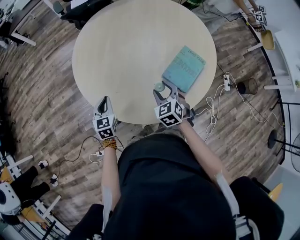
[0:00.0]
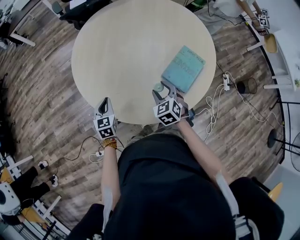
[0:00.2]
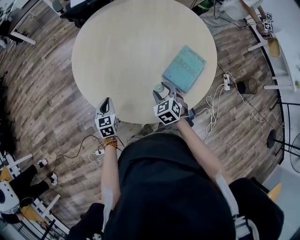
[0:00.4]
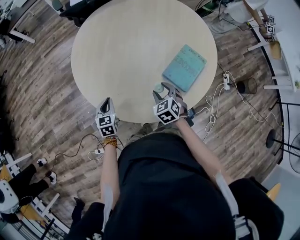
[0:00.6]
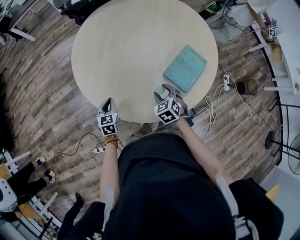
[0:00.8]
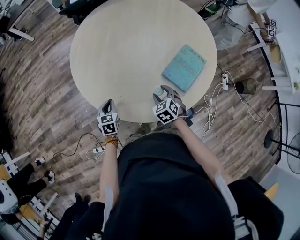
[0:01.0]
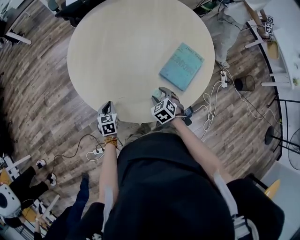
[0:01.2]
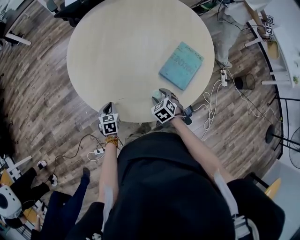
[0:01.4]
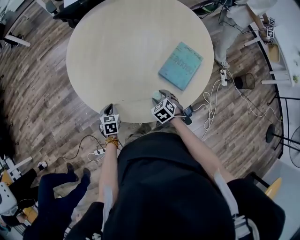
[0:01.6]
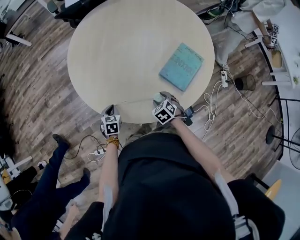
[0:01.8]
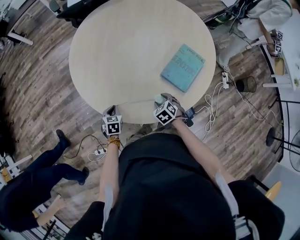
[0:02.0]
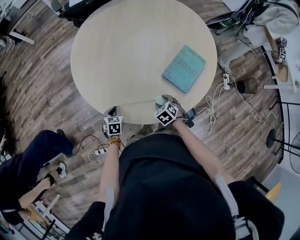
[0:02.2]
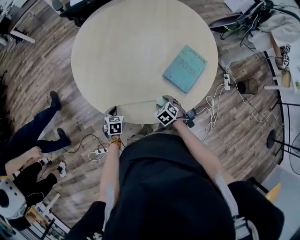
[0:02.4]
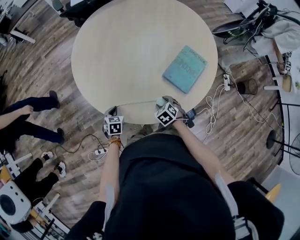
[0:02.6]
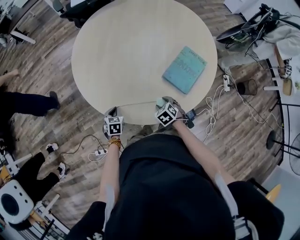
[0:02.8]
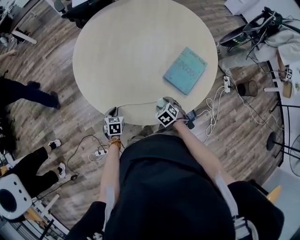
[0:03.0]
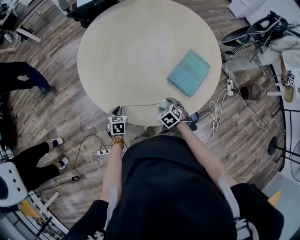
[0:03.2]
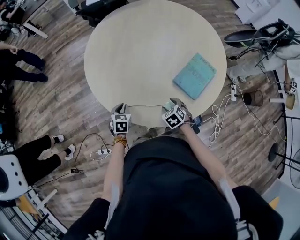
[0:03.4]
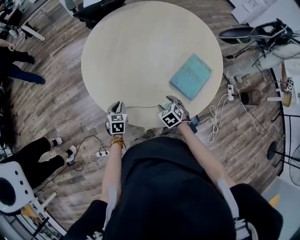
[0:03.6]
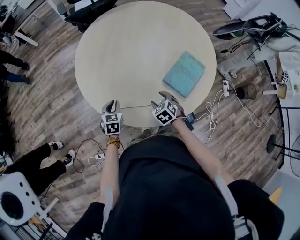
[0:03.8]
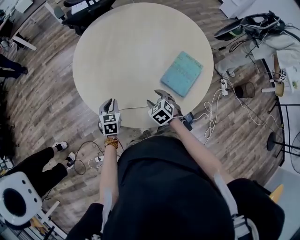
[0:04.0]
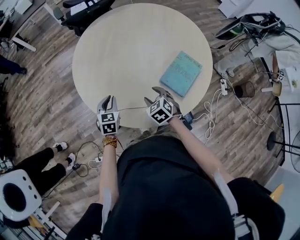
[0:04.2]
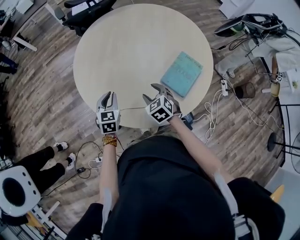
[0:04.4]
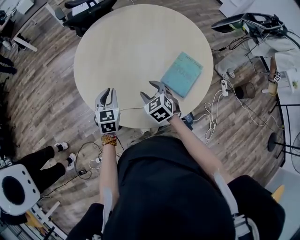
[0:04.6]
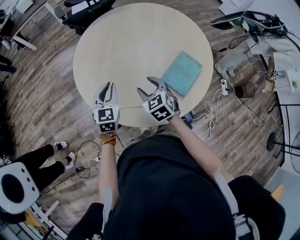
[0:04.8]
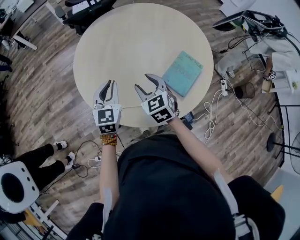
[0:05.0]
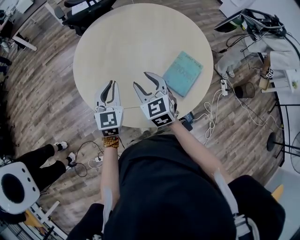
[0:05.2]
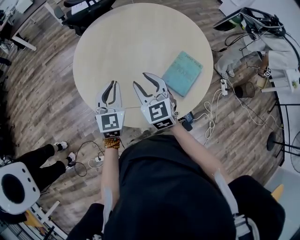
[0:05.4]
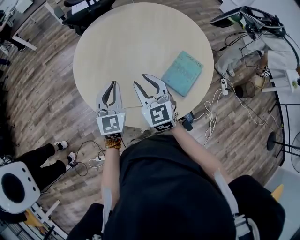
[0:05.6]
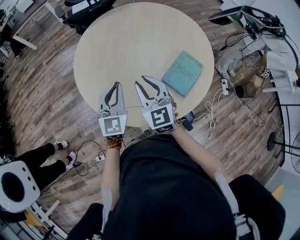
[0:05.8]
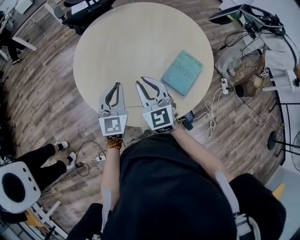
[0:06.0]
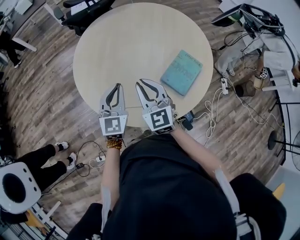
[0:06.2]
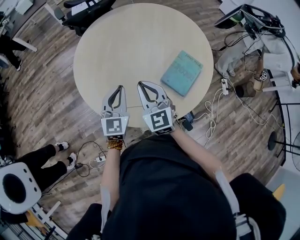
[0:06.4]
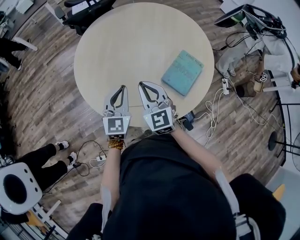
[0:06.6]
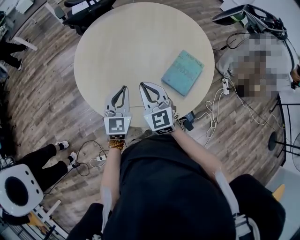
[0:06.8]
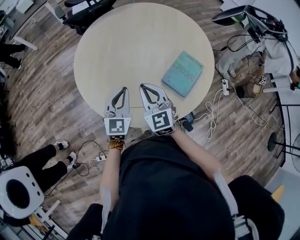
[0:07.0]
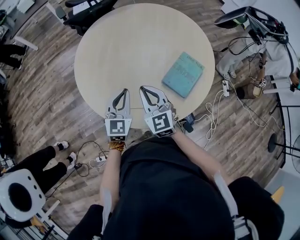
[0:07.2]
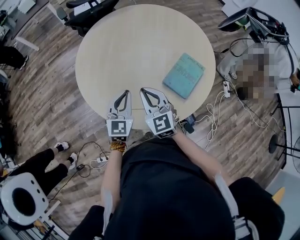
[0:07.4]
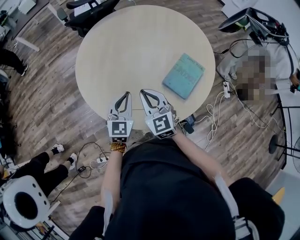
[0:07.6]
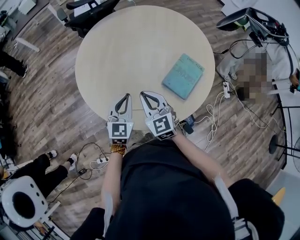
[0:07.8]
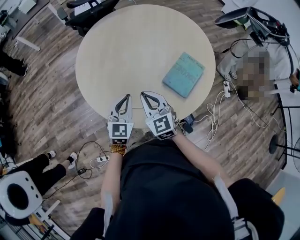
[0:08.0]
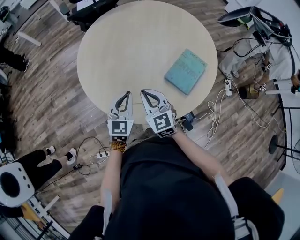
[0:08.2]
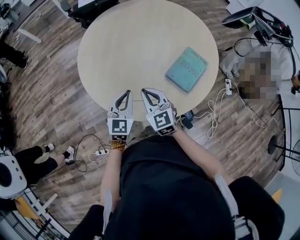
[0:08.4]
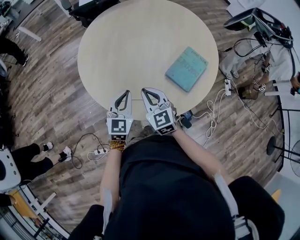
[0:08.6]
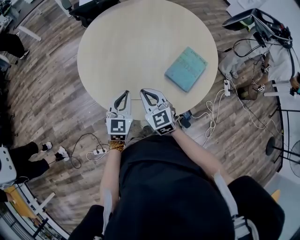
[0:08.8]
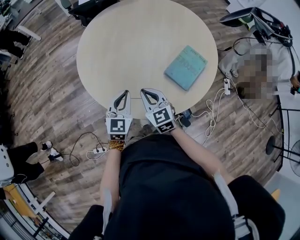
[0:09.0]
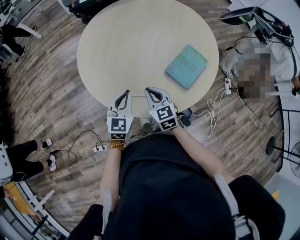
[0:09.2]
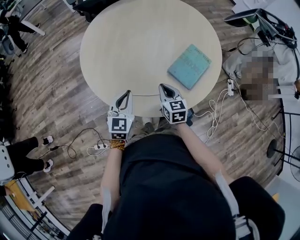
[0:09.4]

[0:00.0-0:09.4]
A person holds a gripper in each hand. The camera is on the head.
0:00.0 to 0:01.6: Both grippers move downward, roughly 15 cm. The left gripper swivels roughly 20 degrees.
0:01.6 to 0:03.2: The grippers stay close to where they were, moving slightly.
0:03.2 to 0:04.8: The right gripper is displaced upward and forward by approximately 20 cm, and turns by some 30 degrees. The left gripper goes approximately 25 cm upward, and points its fingers some 30 degrees further upward.
0:04.8 to 0:06.2: The right gripper shifts some 10 cm upward, changes its angle by approximately 30 degrees, and closes its fingers; the left gripper is displaced upward by roughly 5 cm.
0:06.2 to 0:07.8: Both grippers travel together downward, roughly 5 cm.
0:07.8 to 0:09.4: The right gripper heads downward and to the right, covering roughly 10 cm, and swivels approximately 20 degrees; the left gripper moves backward, about 5 cm.

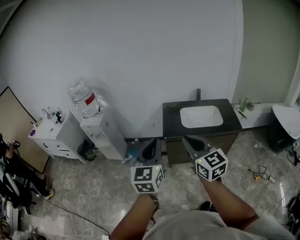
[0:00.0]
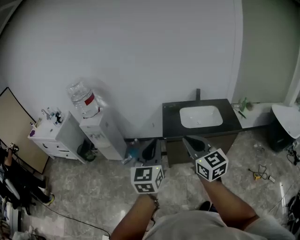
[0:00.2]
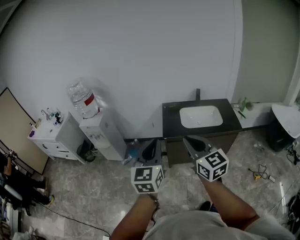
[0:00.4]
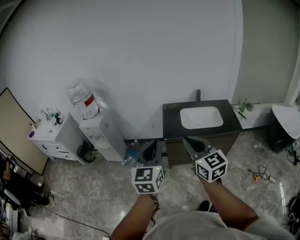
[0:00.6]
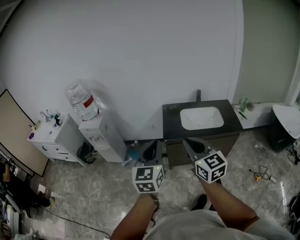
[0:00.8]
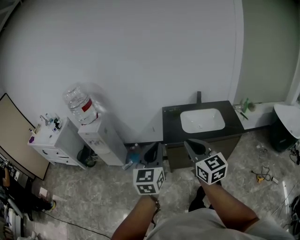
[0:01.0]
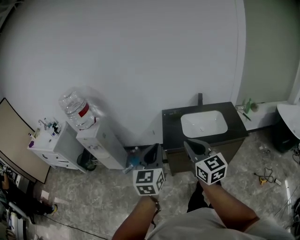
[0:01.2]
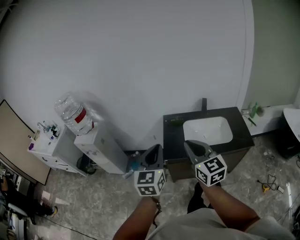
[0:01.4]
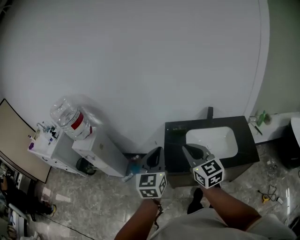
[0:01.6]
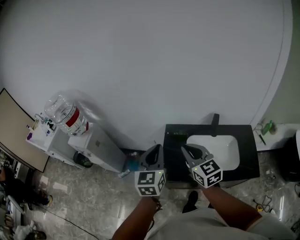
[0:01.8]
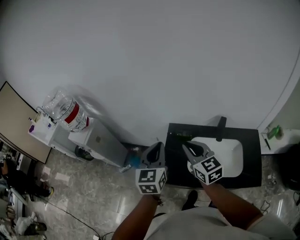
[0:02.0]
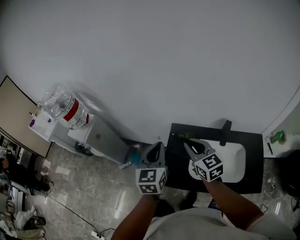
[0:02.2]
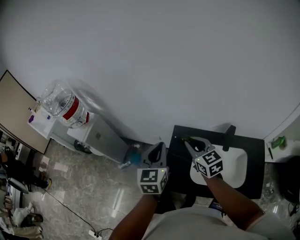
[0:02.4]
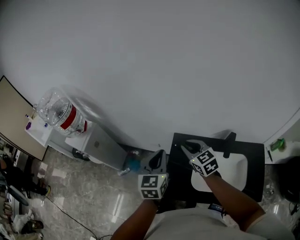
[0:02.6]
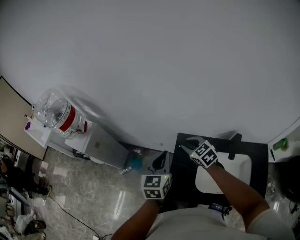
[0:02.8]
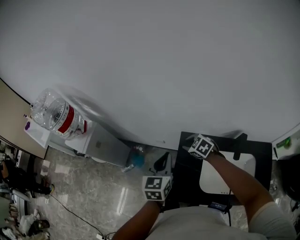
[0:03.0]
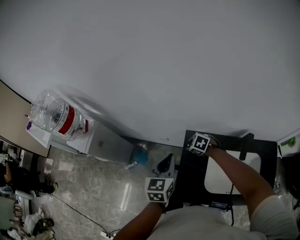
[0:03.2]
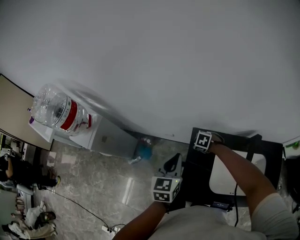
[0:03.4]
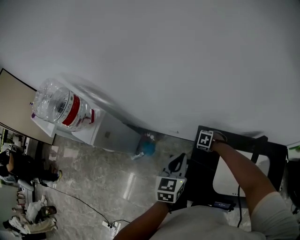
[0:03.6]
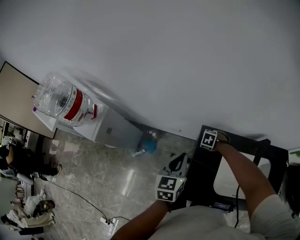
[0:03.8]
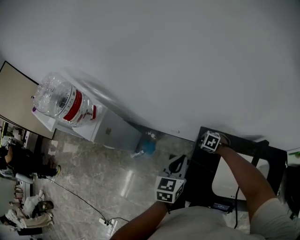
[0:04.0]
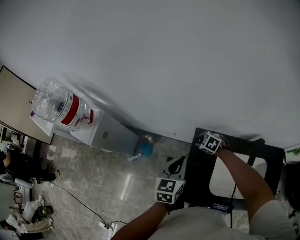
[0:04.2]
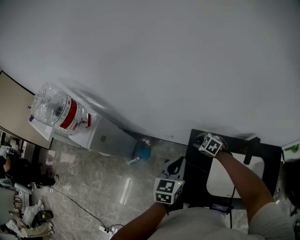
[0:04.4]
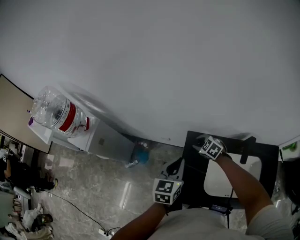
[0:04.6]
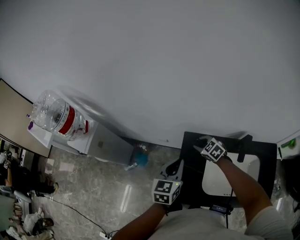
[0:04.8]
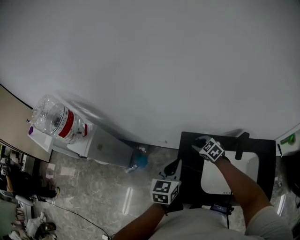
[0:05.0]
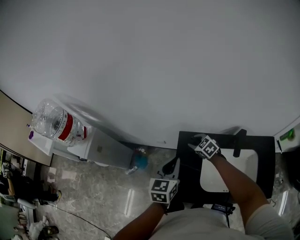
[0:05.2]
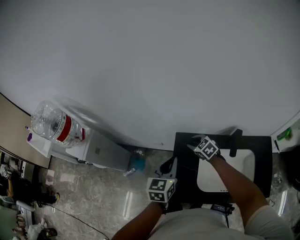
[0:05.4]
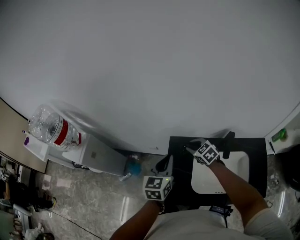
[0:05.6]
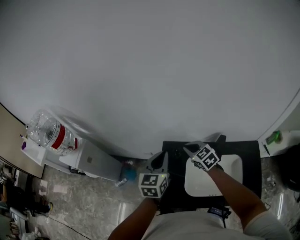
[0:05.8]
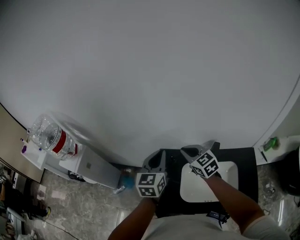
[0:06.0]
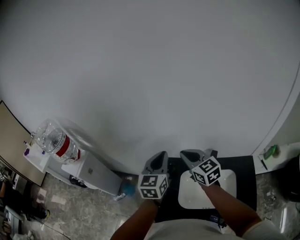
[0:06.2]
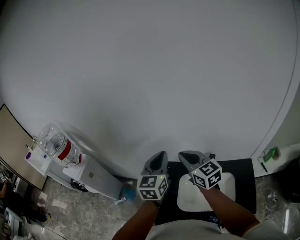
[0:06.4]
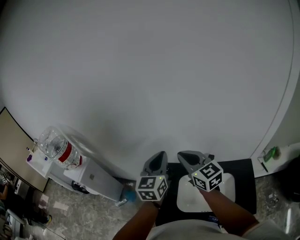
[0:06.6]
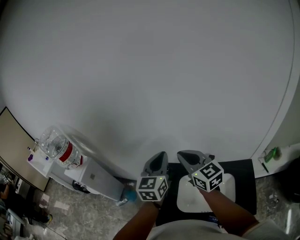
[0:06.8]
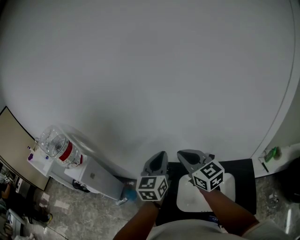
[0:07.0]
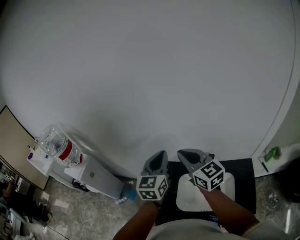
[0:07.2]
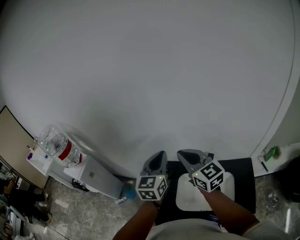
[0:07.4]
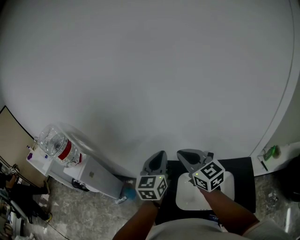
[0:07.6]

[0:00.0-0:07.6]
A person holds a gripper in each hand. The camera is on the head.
0:00.0 to 0:01.6: Both grippers travel together forward, roughly 35 cm.
0:01.6 to 0:03.0: The grippers both shift forward and downward by about 40 cm. The right gripper angles its fingers downward, by some 50 degrees.
0:03.0 to 0:04.6: The right gripper reaches about 20 cm downward, then returns. The left gripper changes place by about 5 cm.
0:04.6 to 0:06.0: The left gripper goes roughly 15 cm upward and to the right. Meanwhile the right gripper goes some 30 cm upward, to the right and backward, turns by some 30 degrees, and closes.
0:06.0 to 0:07.6: The right gripper is displaced upward and backward by roughly 15 cm, and rotates some 20 degrees; the left gripper goes roughly 10 cm upward and to the right.

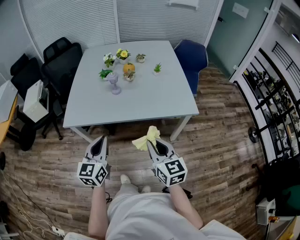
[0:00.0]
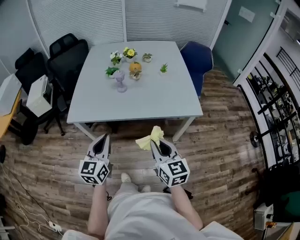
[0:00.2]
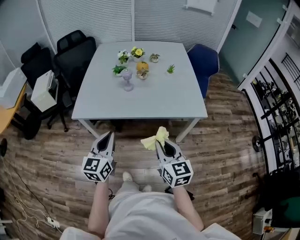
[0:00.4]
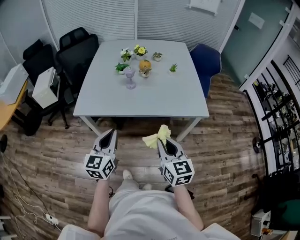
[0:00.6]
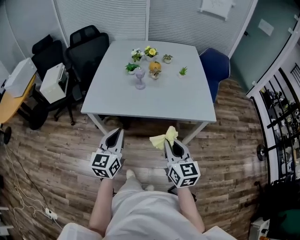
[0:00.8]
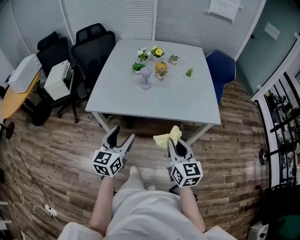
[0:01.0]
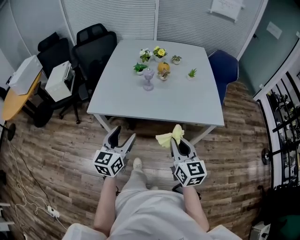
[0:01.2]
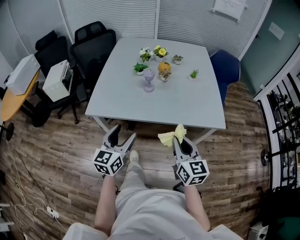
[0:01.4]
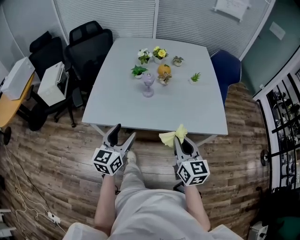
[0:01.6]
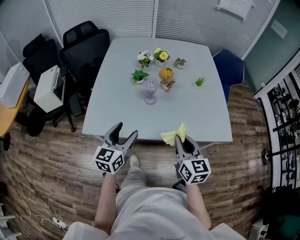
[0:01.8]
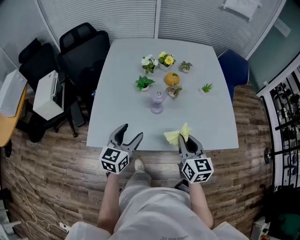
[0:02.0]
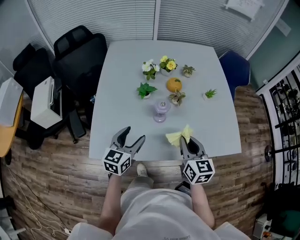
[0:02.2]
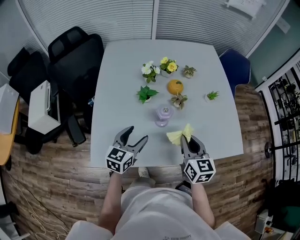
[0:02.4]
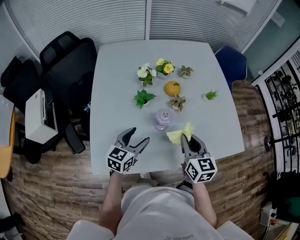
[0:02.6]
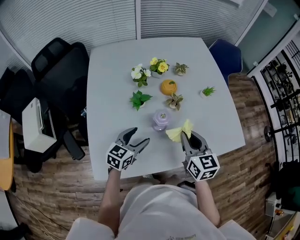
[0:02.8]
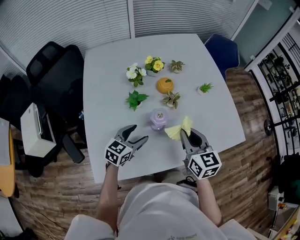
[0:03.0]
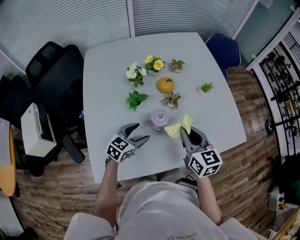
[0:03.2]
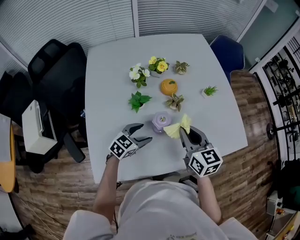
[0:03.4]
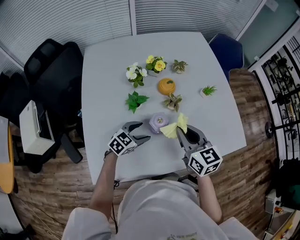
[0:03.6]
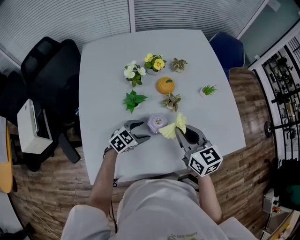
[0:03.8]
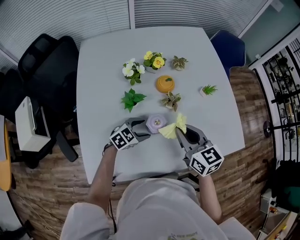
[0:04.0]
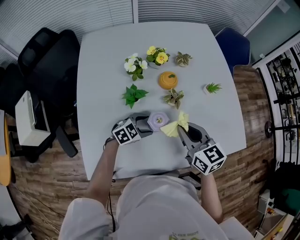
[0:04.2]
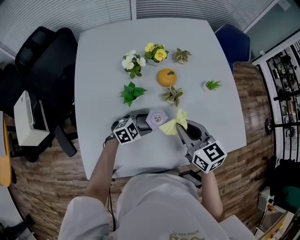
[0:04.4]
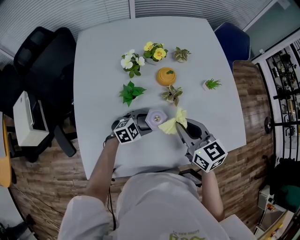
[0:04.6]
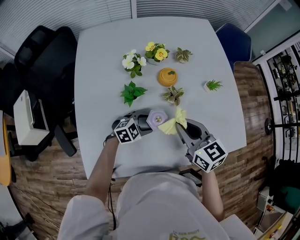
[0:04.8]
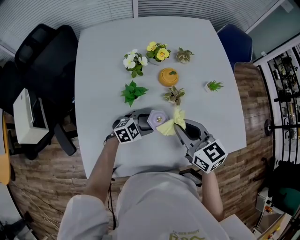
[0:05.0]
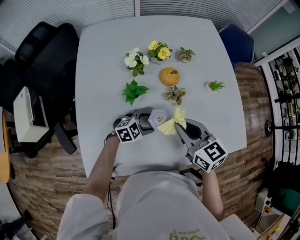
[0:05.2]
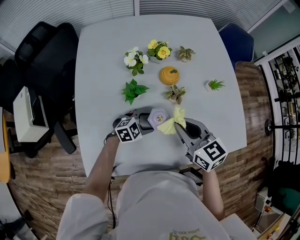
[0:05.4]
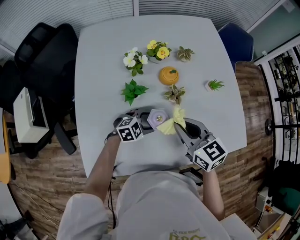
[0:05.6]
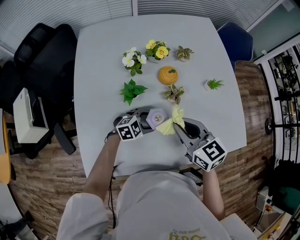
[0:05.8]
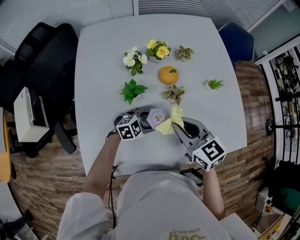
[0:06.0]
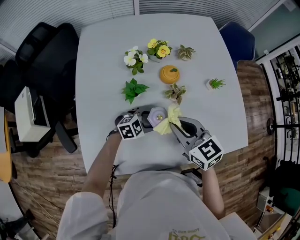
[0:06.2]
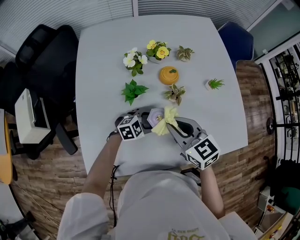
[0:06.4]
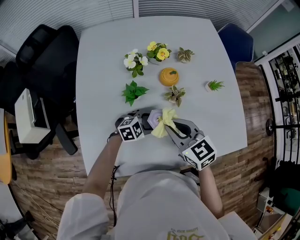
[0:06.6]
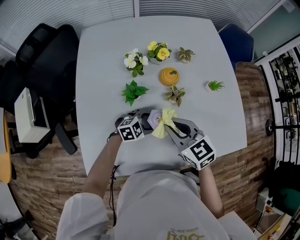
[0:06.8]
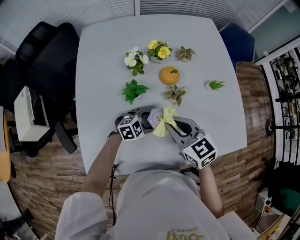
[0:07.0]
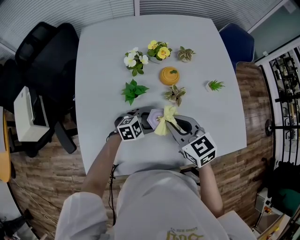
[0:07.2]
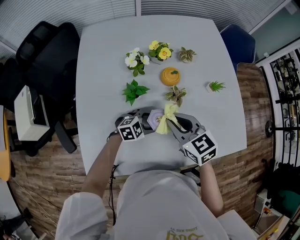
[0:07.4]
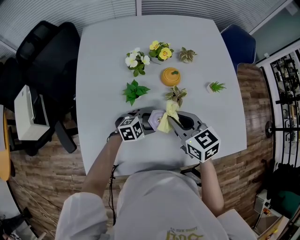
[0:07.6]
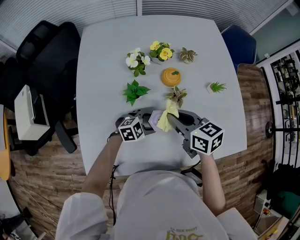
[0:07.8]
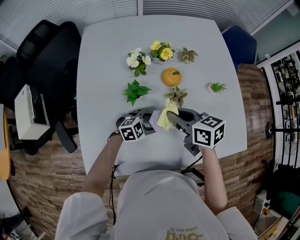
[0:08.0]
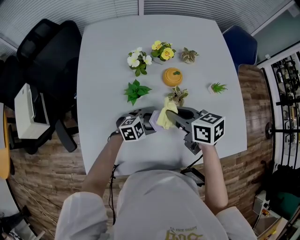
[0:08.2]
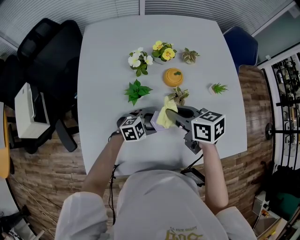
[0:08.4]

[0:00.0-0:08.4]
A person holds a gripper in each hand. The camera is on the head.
0:00.0 to 0:01.4: The right gripper travels forward by roughly 5 cm; the left gripper moves about 5 cm, and opens its fingers.
0:01.4 to 0:02.8: The left gripper moves forward, about 35 cm, and rotates about 40 degrees; the right gripper goes approximately 35 cm forward and to the left.
0:02.8 to 0:04.2: The right gripper goes approximately 5 cm forward. The left gripper shifts approximately 15 cm downward and forward, and changes its angle by about 40 degrees.
0:04.2 to 0:07.0: The grippers move only a little.
0:07.0 to 0:08.4: The right gripper ends up approximately 5 cm from where it was, and turns by approximately 30 degrees.
